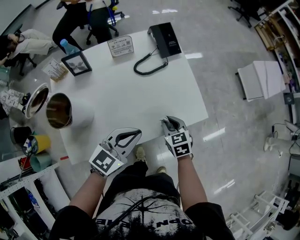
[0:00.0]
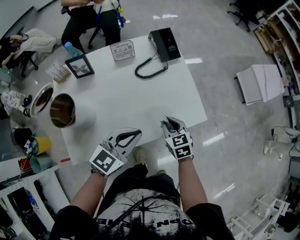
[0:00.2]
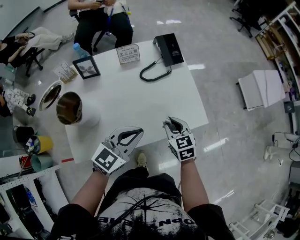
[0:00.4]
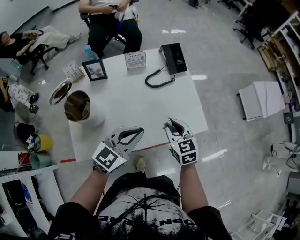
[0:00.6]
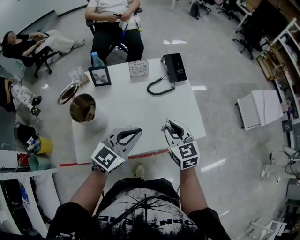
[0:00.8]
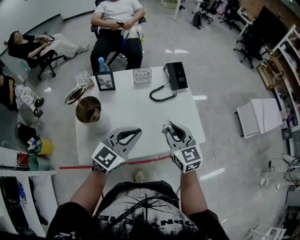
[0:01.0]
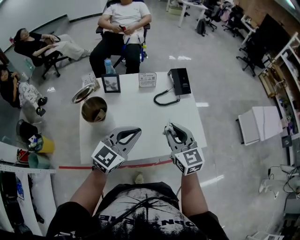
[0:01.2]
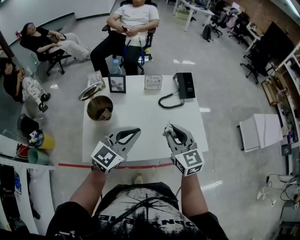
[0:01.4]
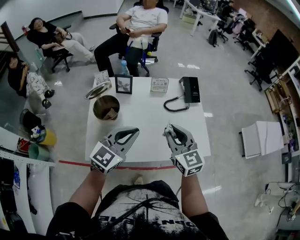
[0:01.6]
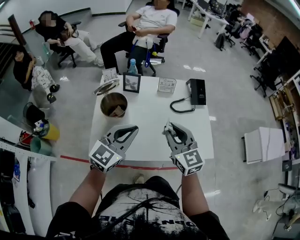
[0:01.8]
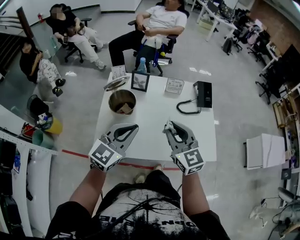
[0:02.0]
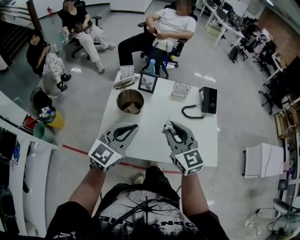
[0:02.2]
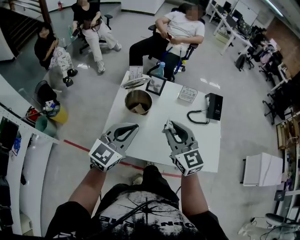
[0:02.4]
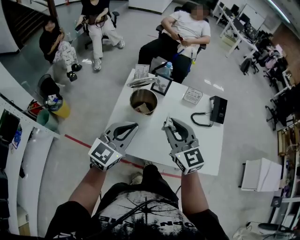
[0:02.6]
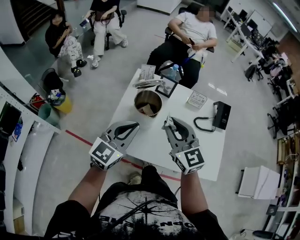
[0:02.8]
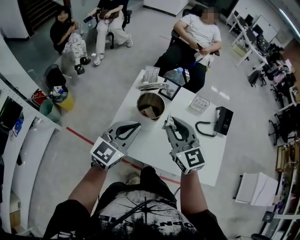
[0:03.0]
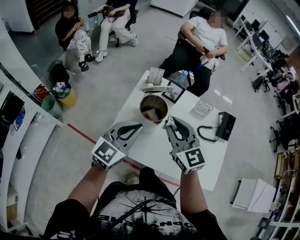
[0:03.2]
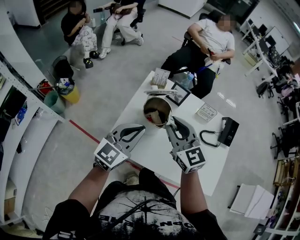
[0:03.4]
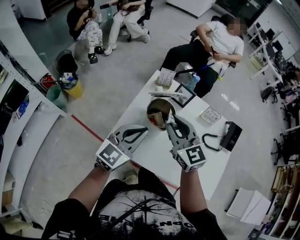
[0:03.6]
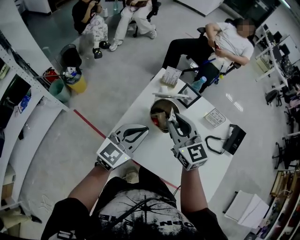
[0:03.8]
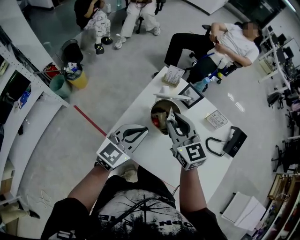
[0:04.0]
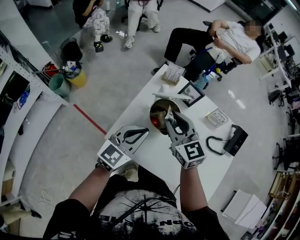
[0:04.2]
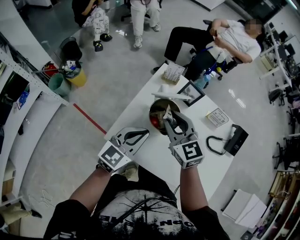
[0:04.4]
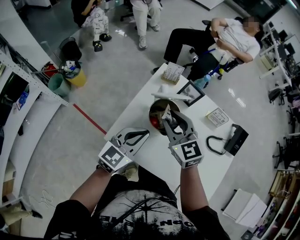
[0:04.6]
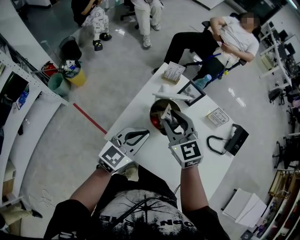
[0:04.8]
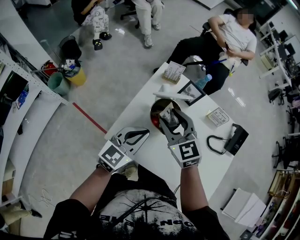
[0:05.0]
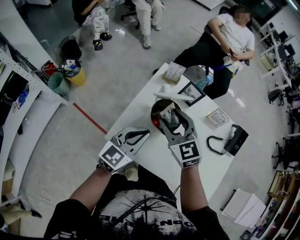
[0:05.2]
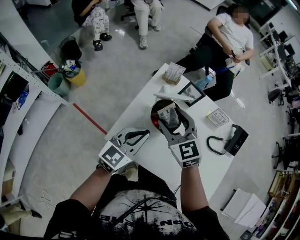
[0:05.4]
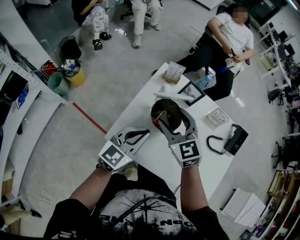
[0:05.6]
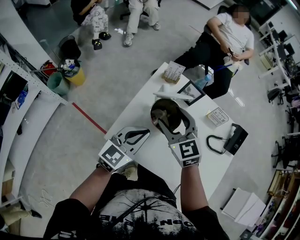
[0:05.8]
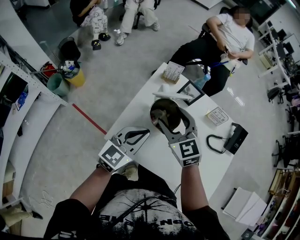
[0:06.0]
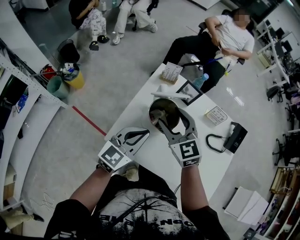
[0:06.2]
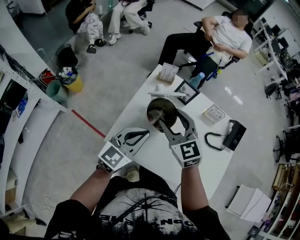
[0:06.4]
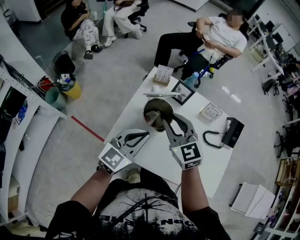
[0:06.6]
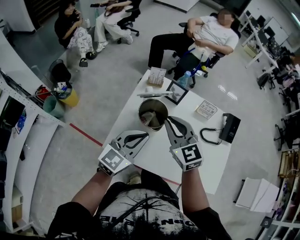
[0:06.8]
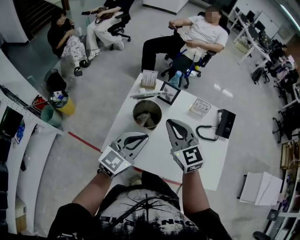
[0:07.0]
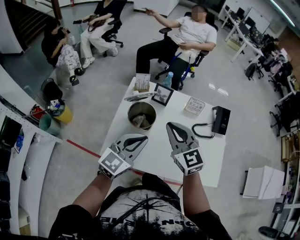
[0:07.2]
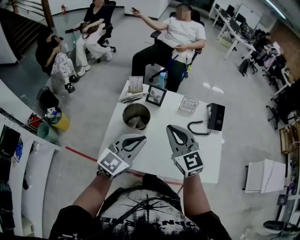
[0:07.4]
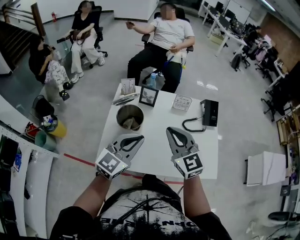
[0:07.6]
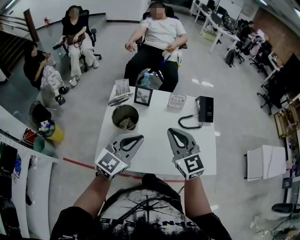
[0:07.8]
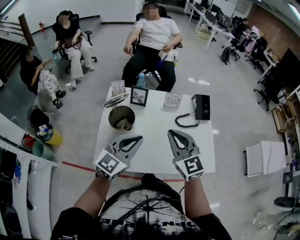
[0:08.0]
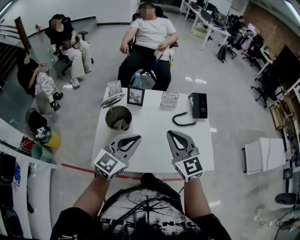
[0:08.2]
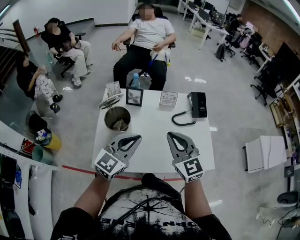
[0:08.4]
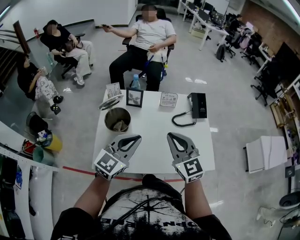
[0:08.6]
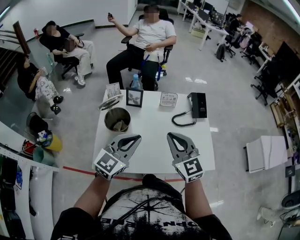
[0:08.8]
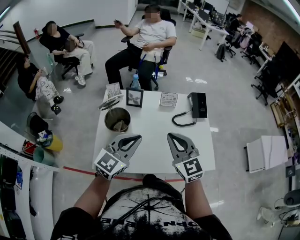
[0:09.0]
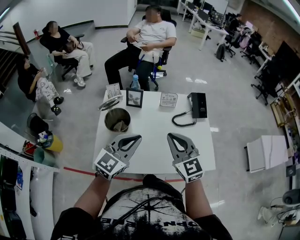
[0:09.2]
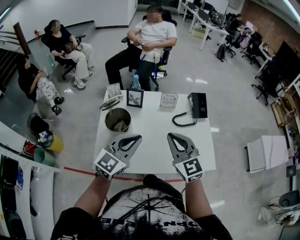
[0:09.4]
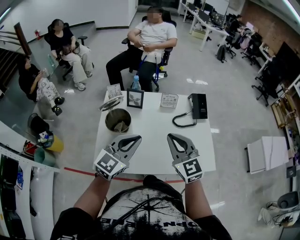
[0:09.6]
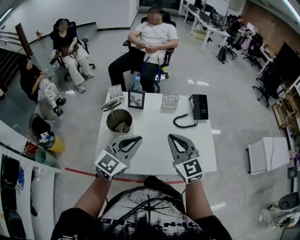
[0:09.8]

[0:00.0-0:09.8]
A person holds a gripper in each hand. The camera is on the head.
0:00.0 to 0:01.4: The right gripper heads upward and to the left, covering some 25 cm, and points its fingers about 30 degrees further upward. Meanwhile the left gripper goes approximately 15 cm upward and to the left, and turns by some 20 degrees.
0:01.4 to 0:02.8: The left gripper moves approximately 20 cm, and swivels roughly 30 degrees. Meanwhile the right gripper moves approximately 20 cm, and changes its angle by about 30 degrees.
0:02.8 to 0:04.2: The right gripper heads forward, downward and to the left, covering about 15 cm. Meanwhile the left gripper shifts some 10 cm downward and forward.
0:04.2 to 0:05.6: The right gripper opens.
0:05.6 to 0:07.0: The right gripper goes approximately 10 cm to the right and upward, and closes. The left gripper shifts by some 5 cm.
0:07.0 to 0:08.4: The right gripper shifts some 15 cm to the right and backward; the left gripper is displaced to the right by roughly 10 cm.
0:08.4 to 0:09.8: Both grippers stay about where they are.

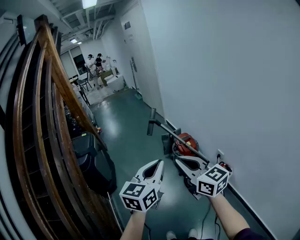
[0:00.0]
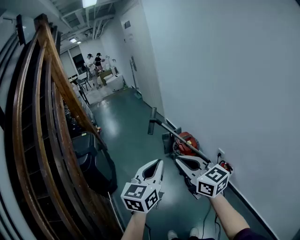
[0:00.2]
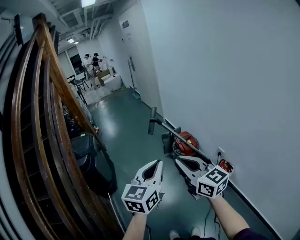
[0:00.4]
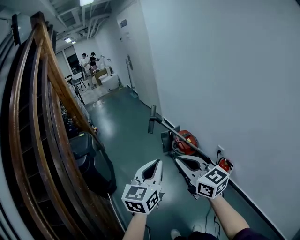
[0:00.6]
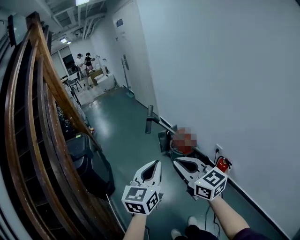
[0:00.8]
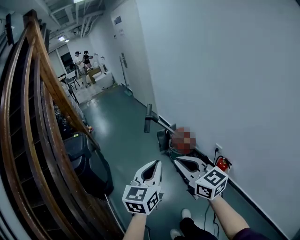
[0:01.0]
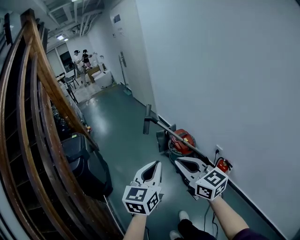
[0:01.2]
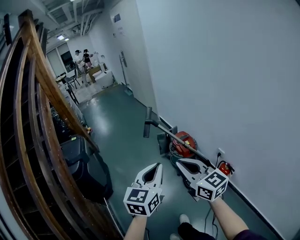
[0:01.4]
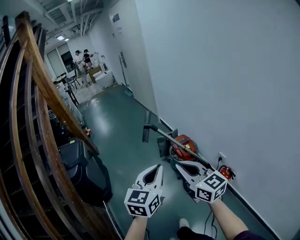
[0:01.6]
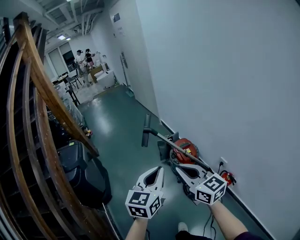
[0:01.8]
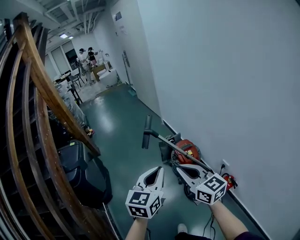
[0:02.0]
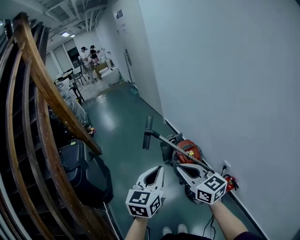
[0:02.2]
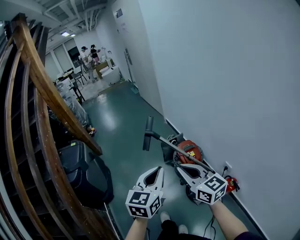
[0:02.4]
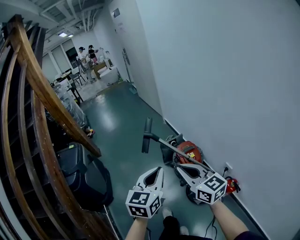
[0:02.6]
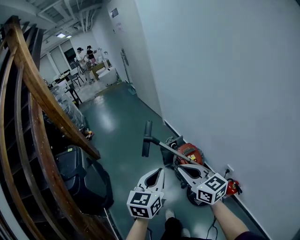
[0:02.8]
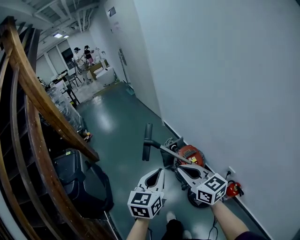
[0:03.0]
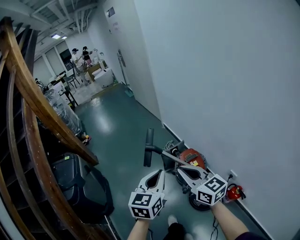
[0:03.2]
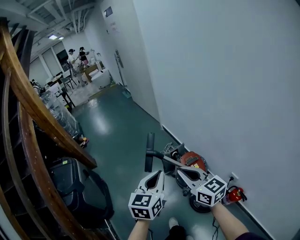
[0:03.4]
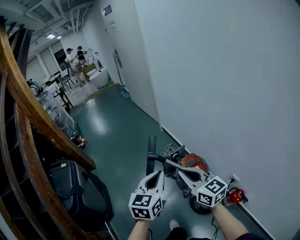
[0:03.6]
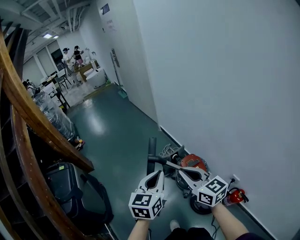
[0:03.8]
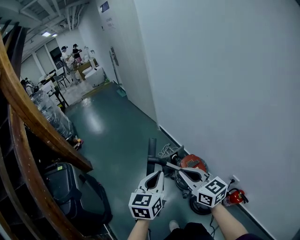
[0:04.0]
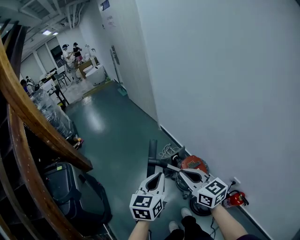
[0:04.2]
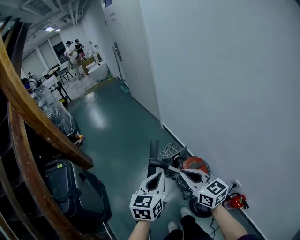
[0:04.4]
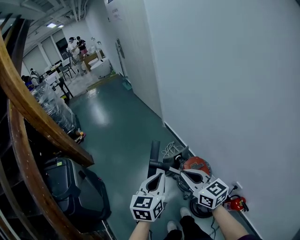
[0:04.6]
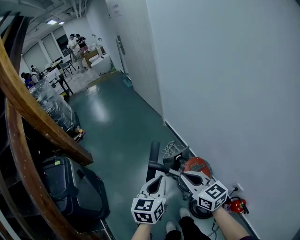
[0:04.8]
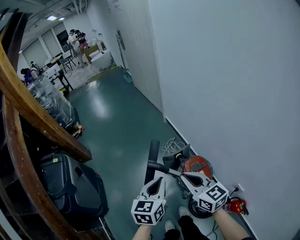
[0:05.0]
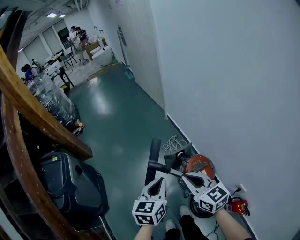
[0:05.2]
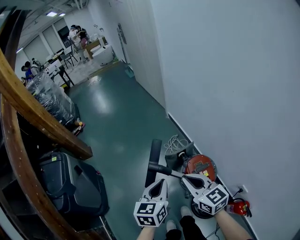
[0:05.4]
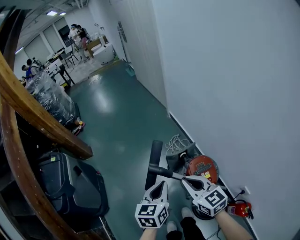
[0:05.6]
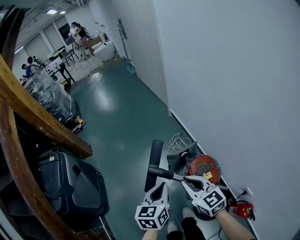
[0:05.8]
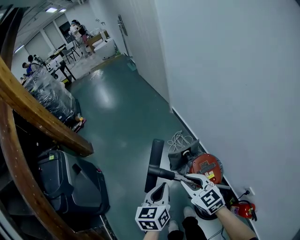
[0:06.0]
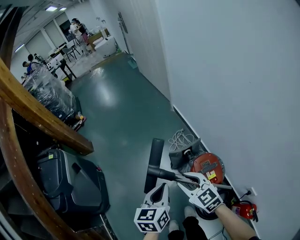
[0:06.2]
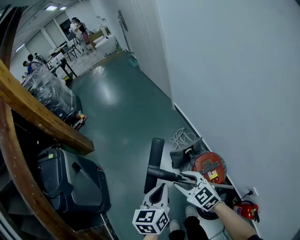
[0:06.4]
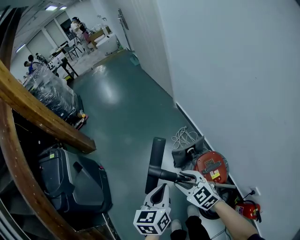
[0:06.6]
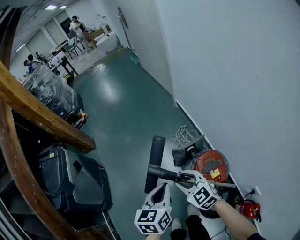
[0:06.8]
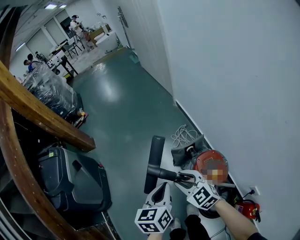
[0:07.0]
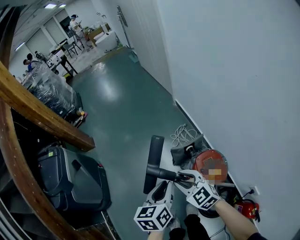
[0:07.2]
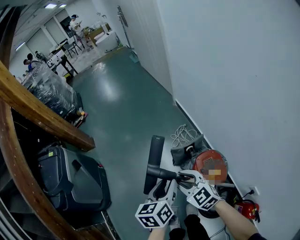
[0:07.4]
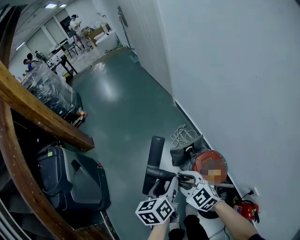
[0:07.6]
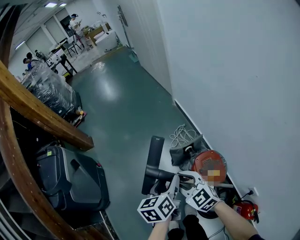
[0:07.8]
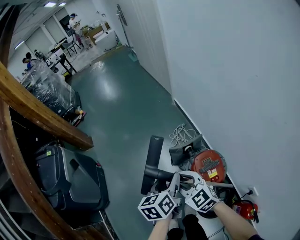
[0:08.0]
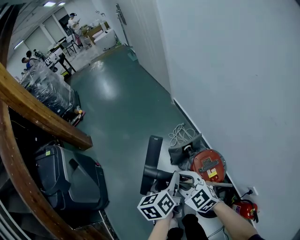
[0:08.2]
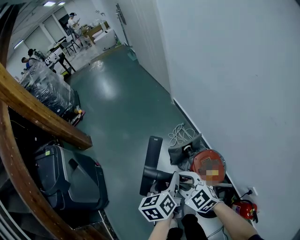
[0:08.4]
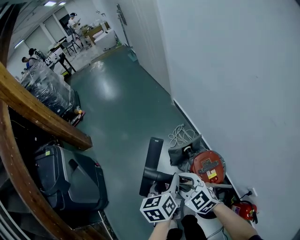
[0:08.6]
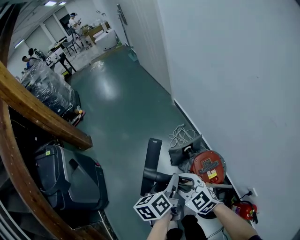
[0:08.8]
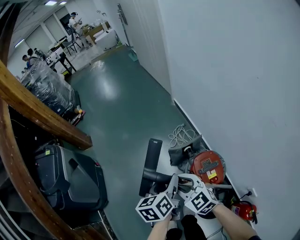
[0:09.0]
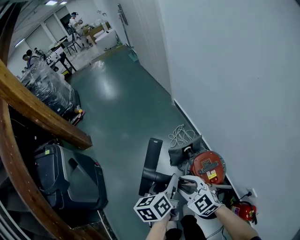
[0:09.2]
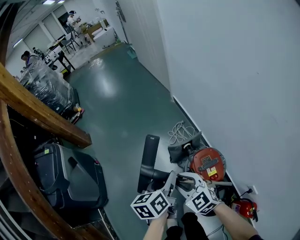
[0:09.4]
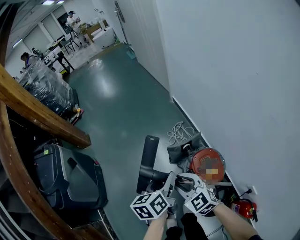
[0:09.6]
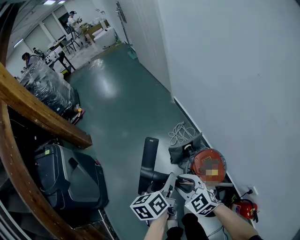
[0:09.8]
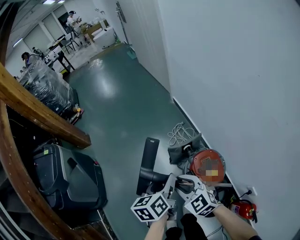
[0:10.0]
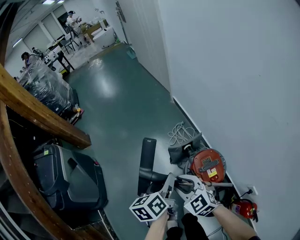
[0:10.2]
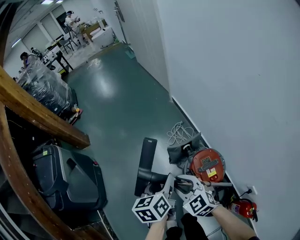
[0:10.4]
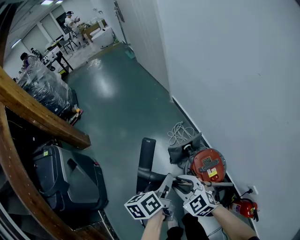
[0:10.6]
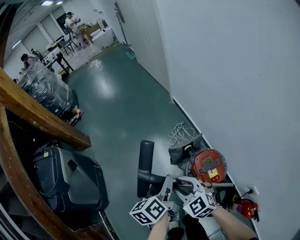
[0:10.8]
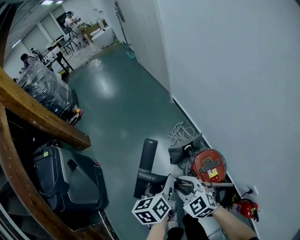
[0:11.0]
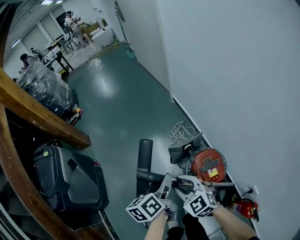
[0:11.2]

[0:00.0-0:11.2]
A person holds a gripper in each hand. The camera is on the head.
0:00.0 to 0:01.6: The left gripper goes approximately 15 cm forward. Meanwhile the right gripper heads forward and downward, covering about 15 cm.
0:01.6 to 0:03.2: Both grippers move forward, roughly 25 cm.
0:03.2 to 0:04.8: The grippers both shift forward and downward by about 20 cm.
0:04.8 to 0:06.4: Both grippers move downward, approximately 20 cm. The right gripper turns by approximately 30 degrees, and opens.
0:06.4 to 0:08.0: The left gripper shifts by approximately 5 cm, and opens its fingers.
0:08.0 to 0:11.2: The grippers make only small movements.

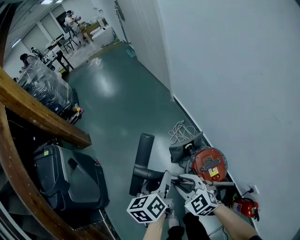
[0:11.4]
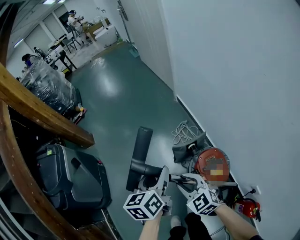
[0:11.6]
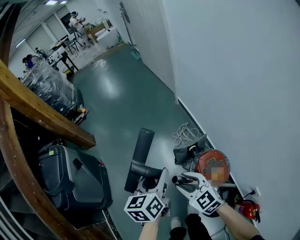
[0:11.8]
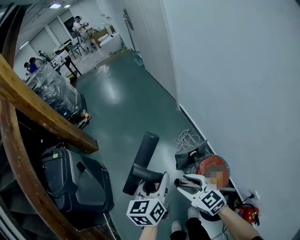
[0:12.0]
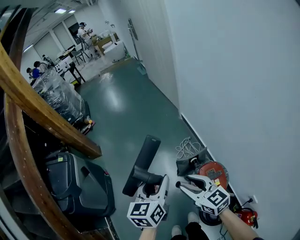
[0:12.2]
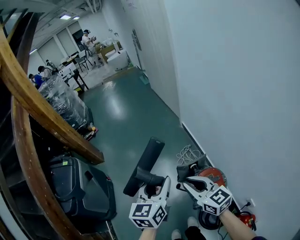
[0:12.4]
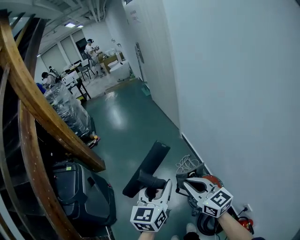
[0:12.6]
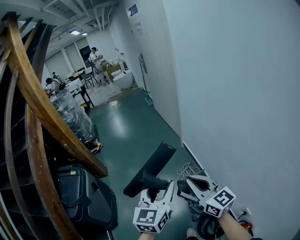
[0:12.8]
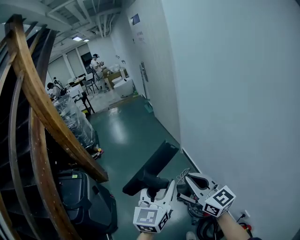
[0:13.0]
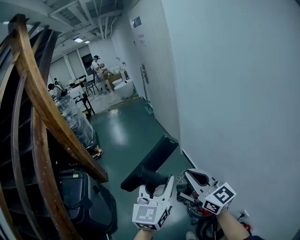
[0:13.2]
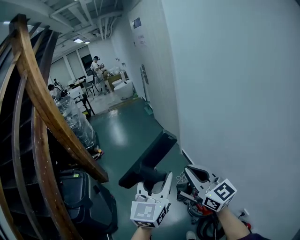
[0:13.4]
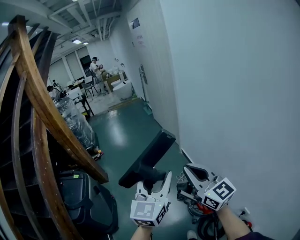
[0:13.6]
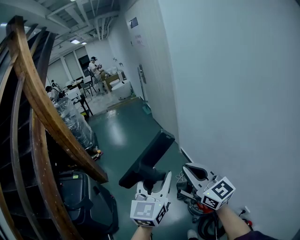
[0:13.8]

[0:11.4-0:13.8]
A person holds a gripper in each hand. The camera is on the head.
0:11.4 to 0:12.6: Both grippers travel together upward, roughly 25 cm. The left gripper rotates roughly 30 degrees, while the right gripper turns by about 30 degrees, and closes its fingers.
0:12.6 to 0:13.8: The two grippers go about 15 cm upward.
